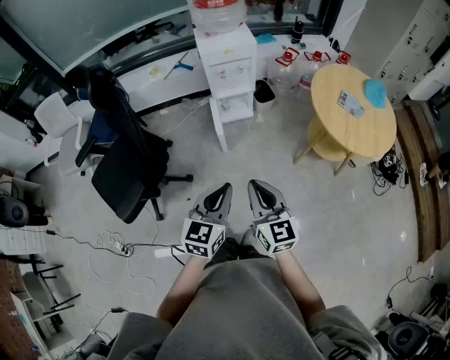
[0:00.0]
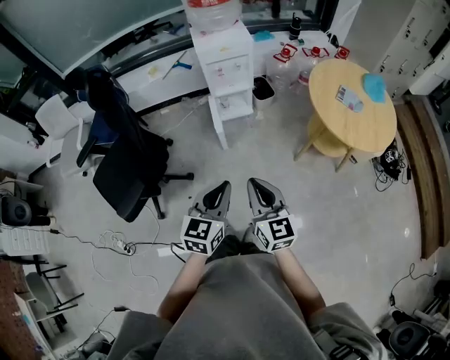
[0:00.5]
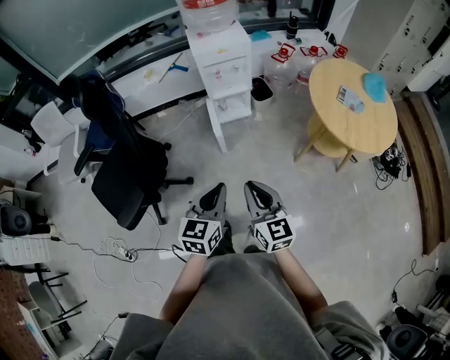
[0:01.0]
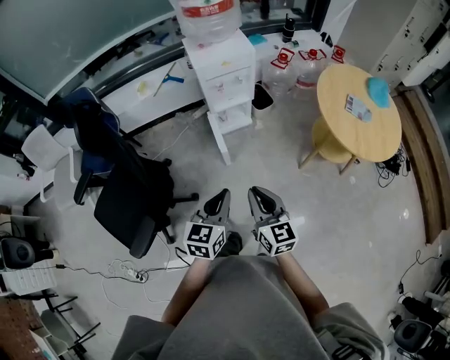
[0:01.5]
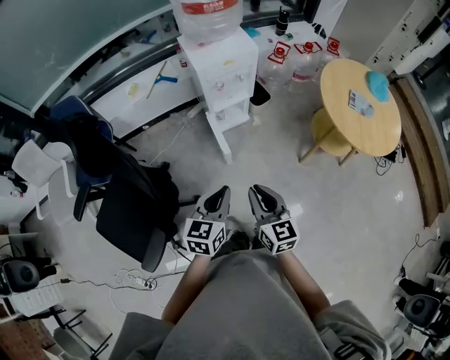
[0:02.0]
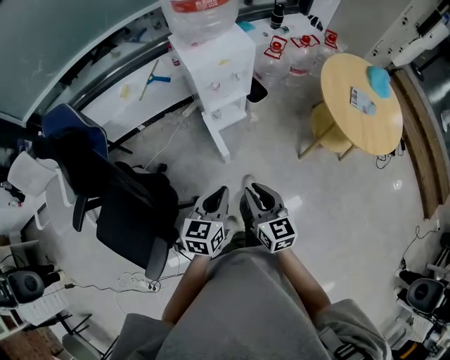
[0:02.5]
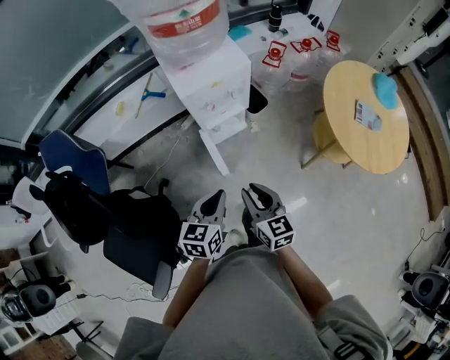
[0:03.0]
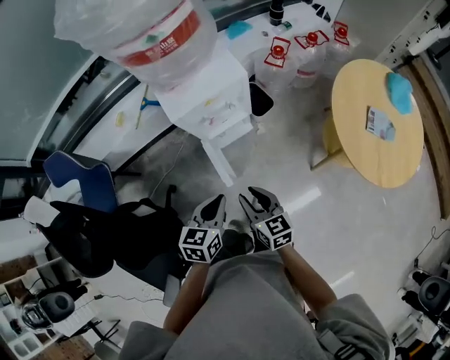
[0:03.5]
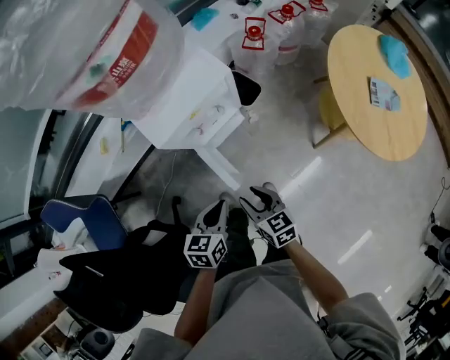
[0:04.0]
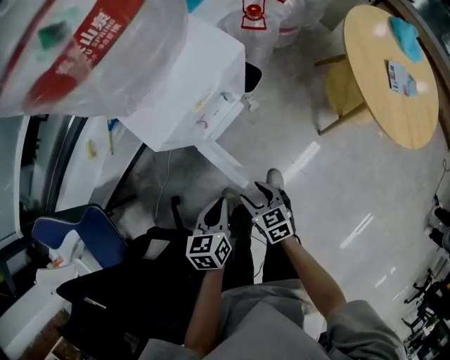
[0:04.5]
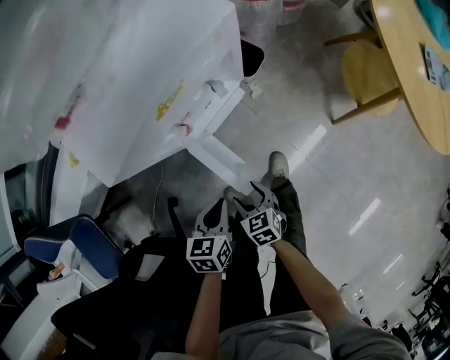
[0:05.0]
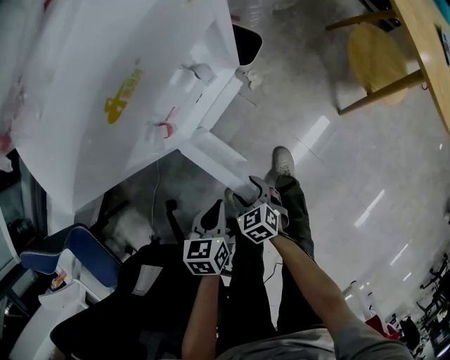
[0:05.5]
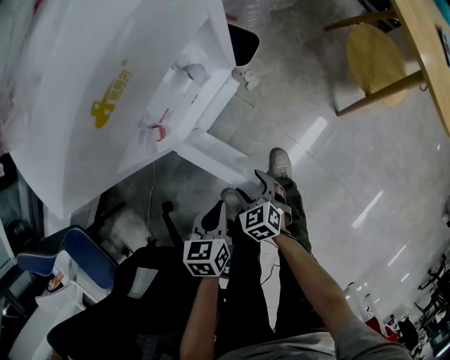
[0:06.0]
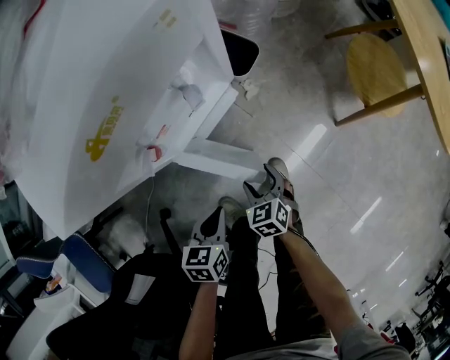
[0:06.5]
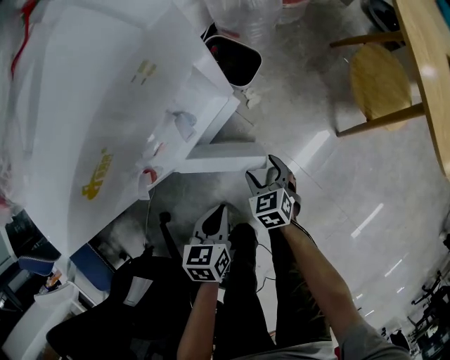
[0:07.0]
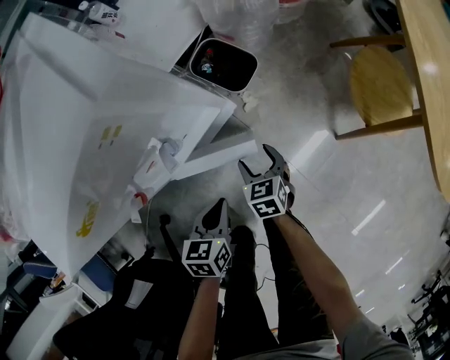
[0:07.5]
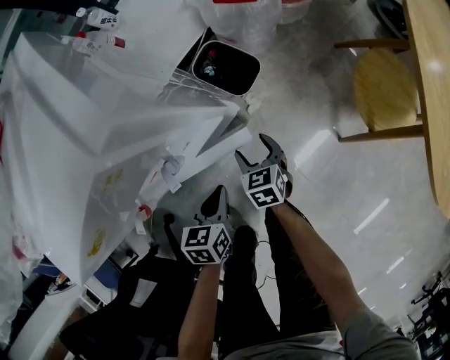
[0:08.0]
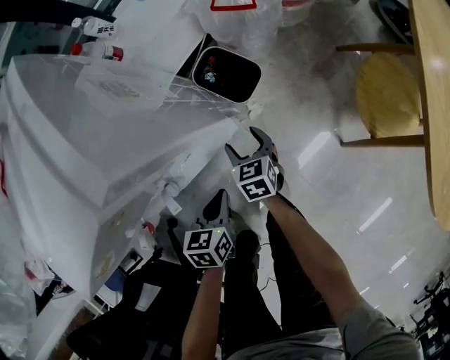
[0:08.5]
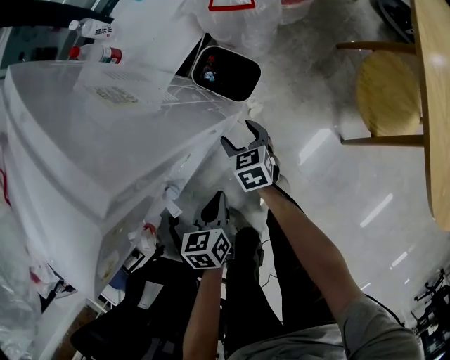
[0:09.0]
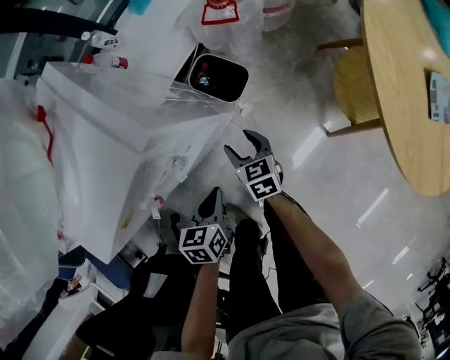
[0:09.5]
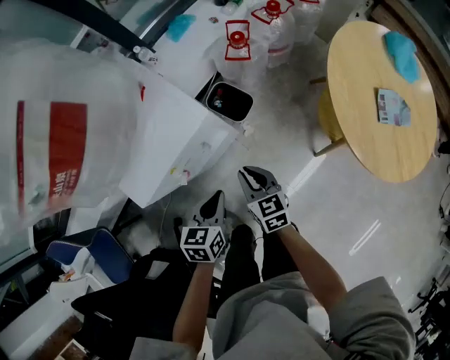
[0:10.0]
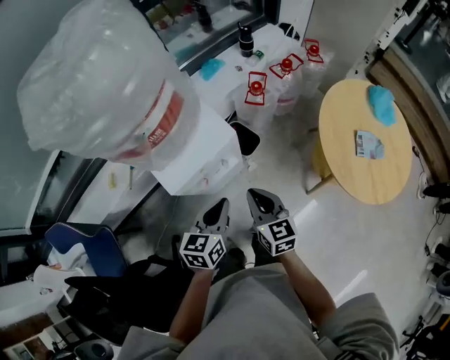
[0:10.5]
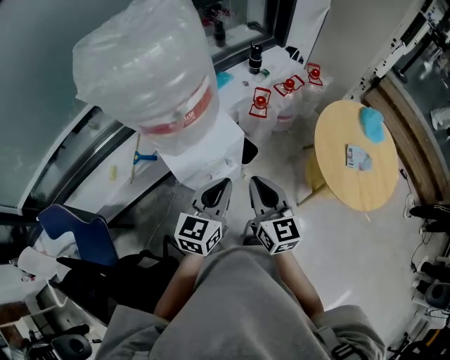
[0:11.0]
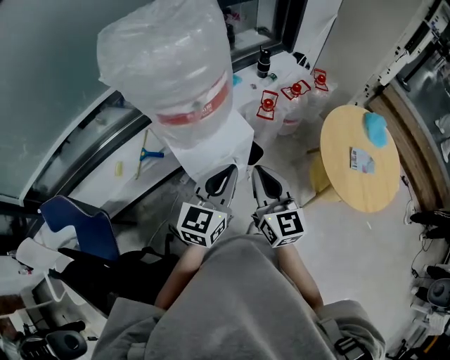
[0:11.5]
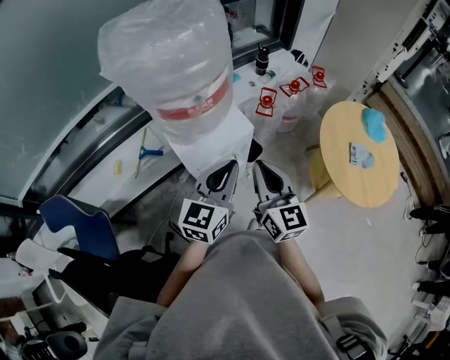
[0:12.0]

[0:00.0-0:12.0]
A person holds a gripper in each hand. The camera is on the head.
0:00.0 to 0:02.0: The two grippers go roughly 20 cm forward, to the left and downward.
0:02.0 to 0:04.0: The two grippers go approximately 30 cm forward and downward. The left gripper changes its angle by roughly 20 degrees. Meanwhile the right gripper changes its angle by some 20 degrees, and opens.
0:04.0 to 0:06.0: The two grippers go some 35 cm downward. The right gripper swivels about 30 degrees, and opens its fingers.
0:06.0 to 0:08.0: The two grippers go some 20 cm forward.
0:08.0 to 0:10.0: The two grippers go about 25 cm upward. The right gripper closes its fingers.
0:10.0 to 0:12.0: Both grippers travel together upward, approximately 35 cm. The left gripper points its fingers approximately 40 degrees further upward, while the right gripper tilts its fingers about 30 degrees upward.

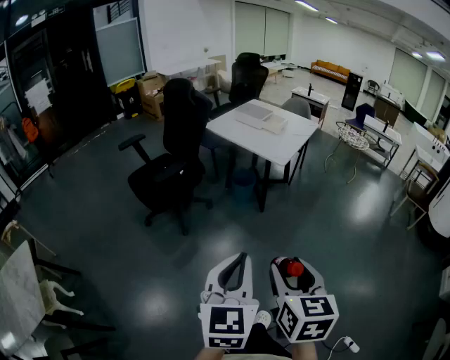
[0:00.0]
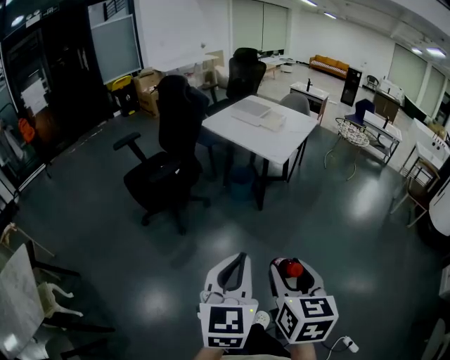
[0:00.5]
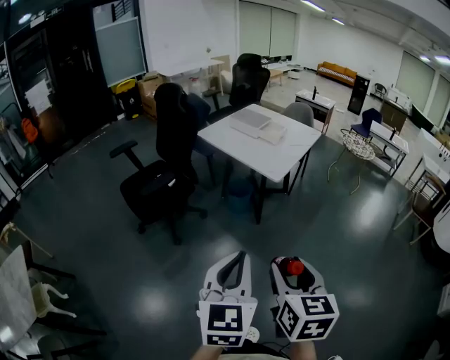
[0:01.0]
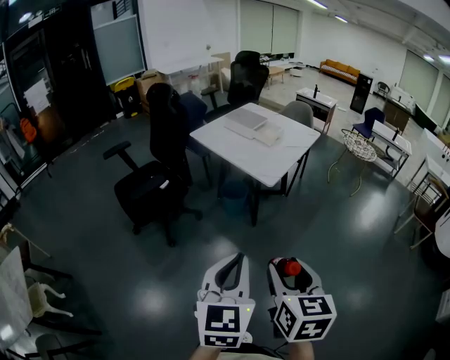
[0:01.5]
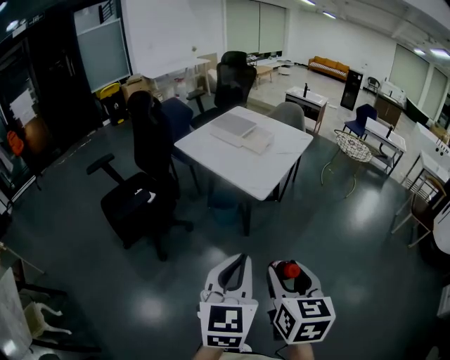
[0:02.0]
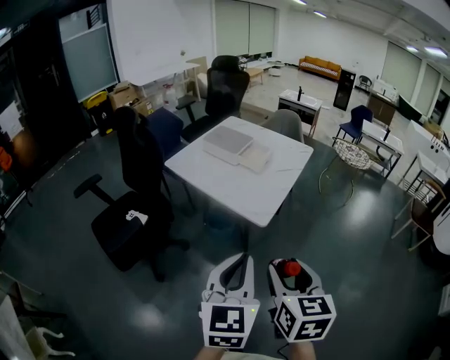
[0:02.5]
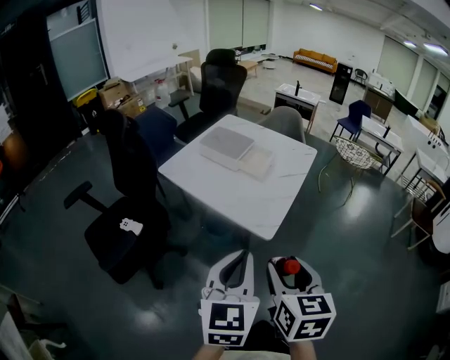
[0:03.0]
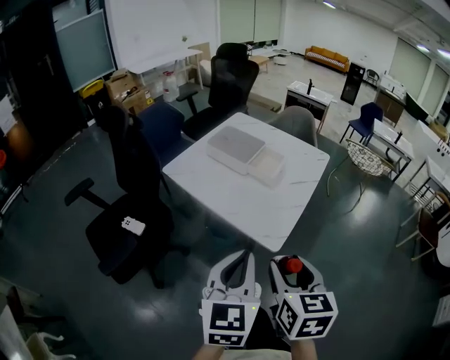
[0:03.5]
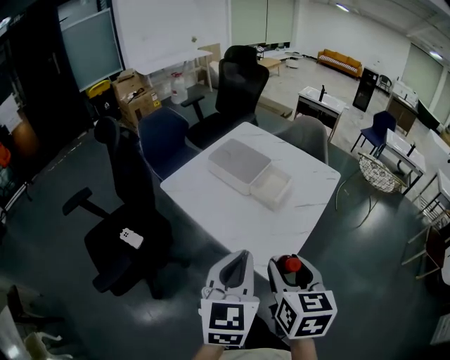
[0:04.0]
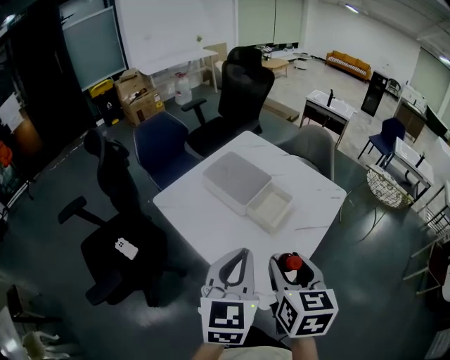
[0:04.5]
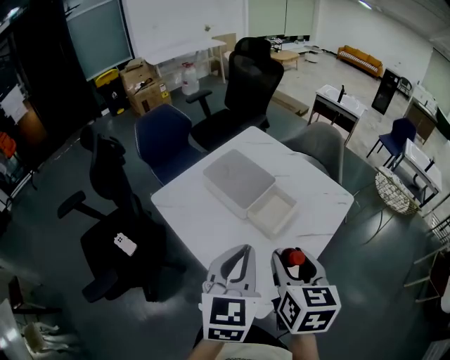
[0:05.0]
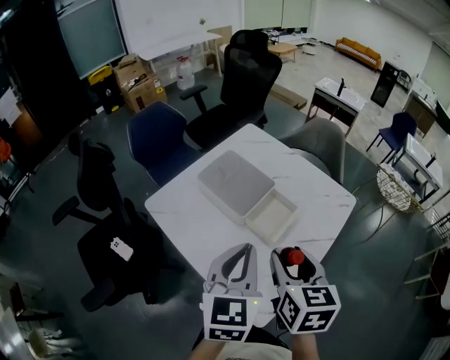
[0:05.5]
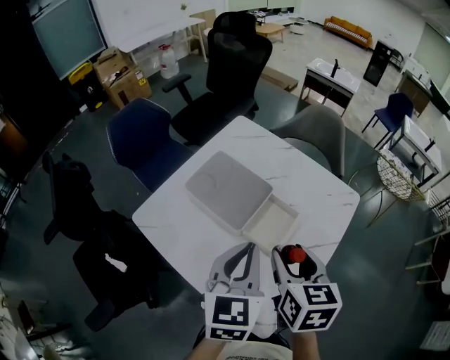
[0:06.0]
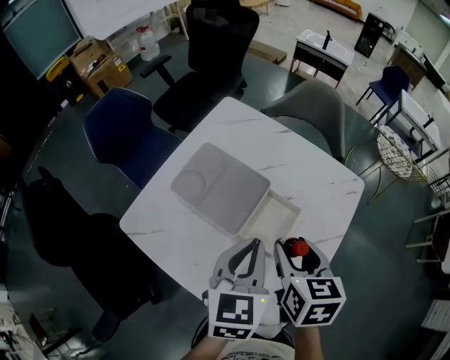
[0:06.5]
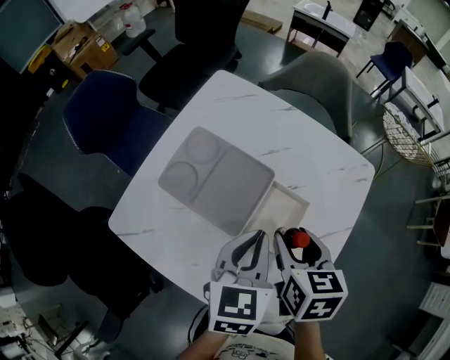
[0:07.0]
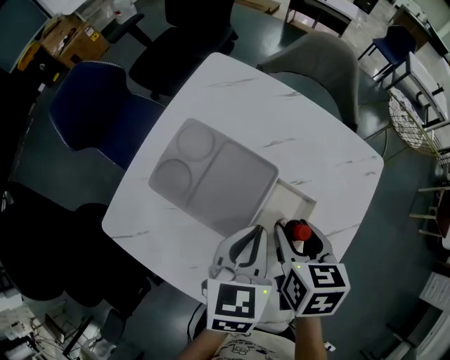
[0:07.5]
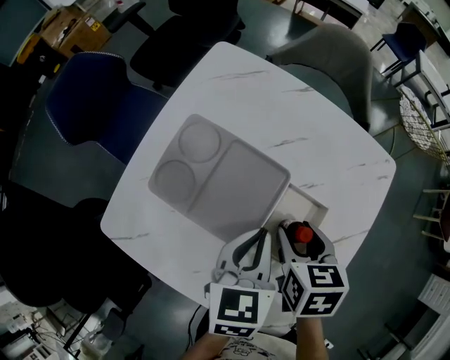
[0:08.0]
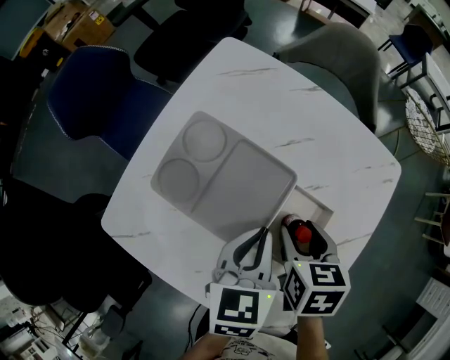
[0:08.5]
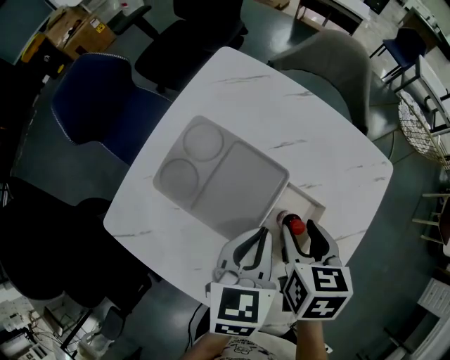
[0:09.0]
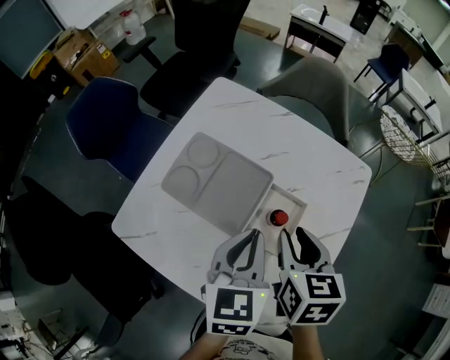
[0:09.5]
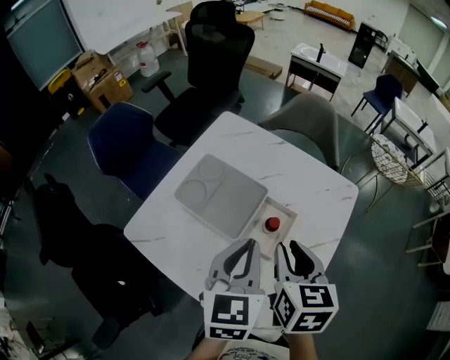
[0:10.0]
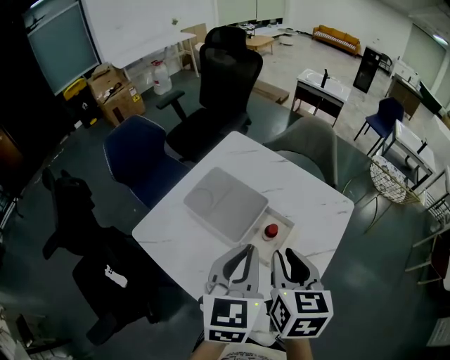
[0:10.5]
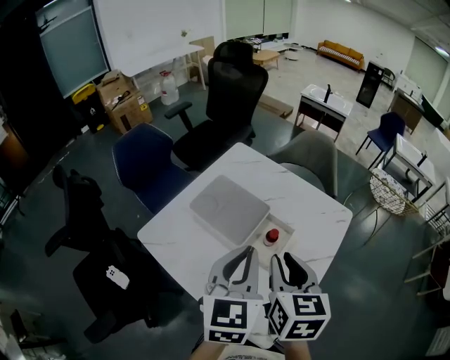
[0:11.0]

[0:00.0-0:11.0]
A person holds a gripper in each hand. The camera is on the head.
0:00.0 to 0:02.0: Both grippers travel together forward and to the right, roughly 30 cm.
0:02.0 to 0:03.5: Both grippers travel together forward, approximately 30 cm.
0:03.5 to 0:05.5: Both grippers move forward, roughly 35 cm.
0:05.5 to 0:07.5: The grippers both shift forward and downward by roughly 25 cm. The left gripper swivels about 30 degrees; the right gripper swivels approximately 20 degrees.
0:07.5 to 0:09.0: The grippers make only small movements.
0:09.0 to 0:11.0: Both grippers move upward and backward, about 20 cm. The left gripper swivels some 30 degrees, while the right gripper rotates some 30 degrees, and closes.

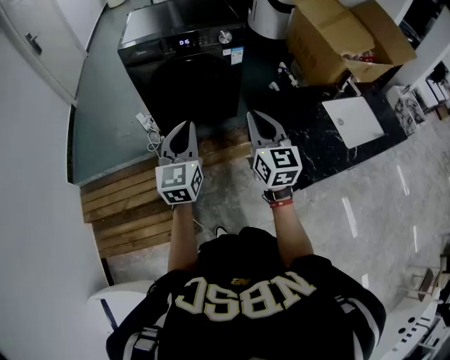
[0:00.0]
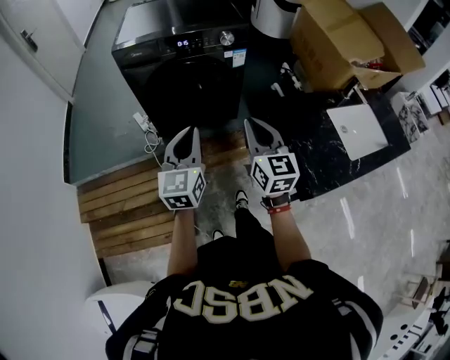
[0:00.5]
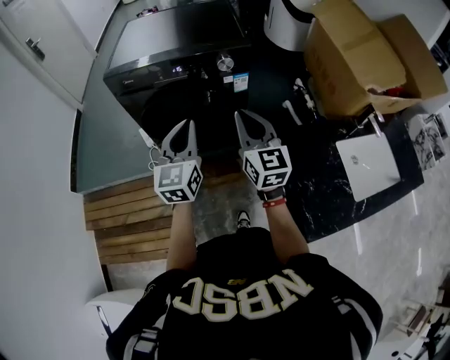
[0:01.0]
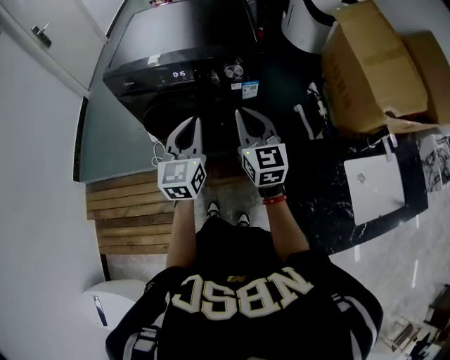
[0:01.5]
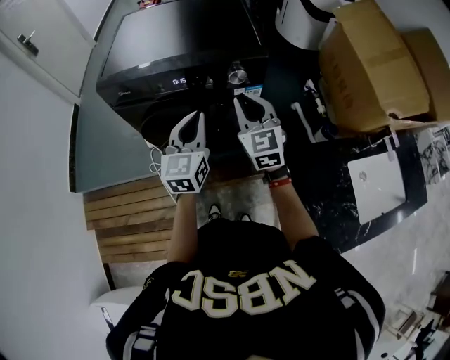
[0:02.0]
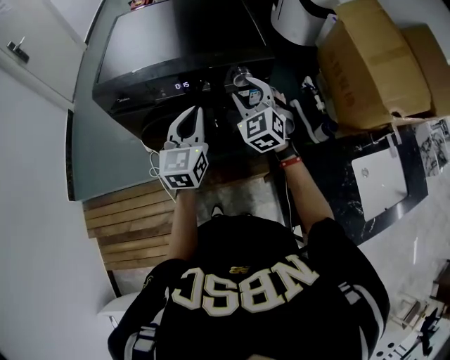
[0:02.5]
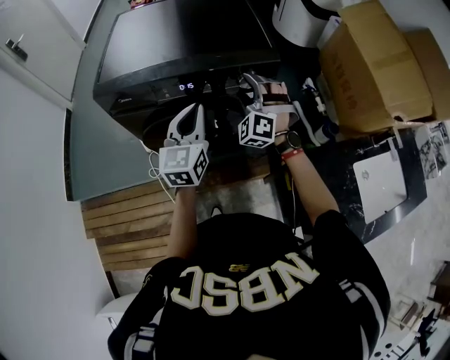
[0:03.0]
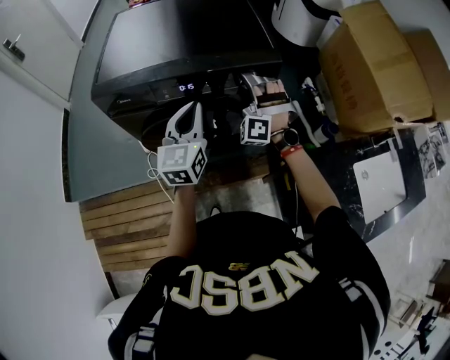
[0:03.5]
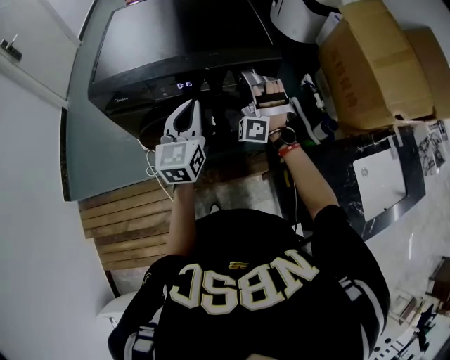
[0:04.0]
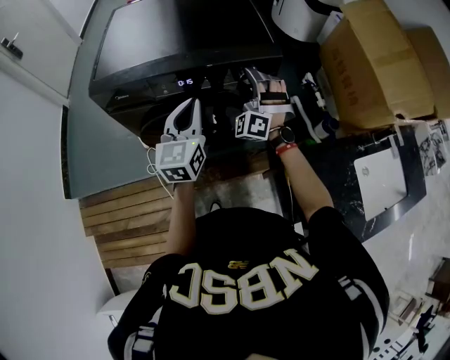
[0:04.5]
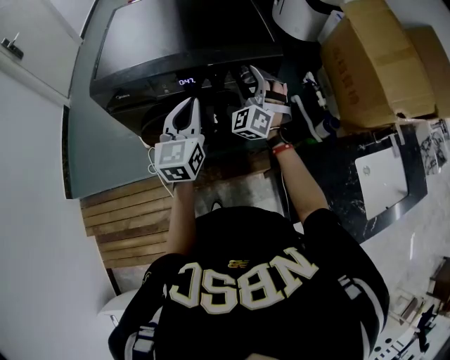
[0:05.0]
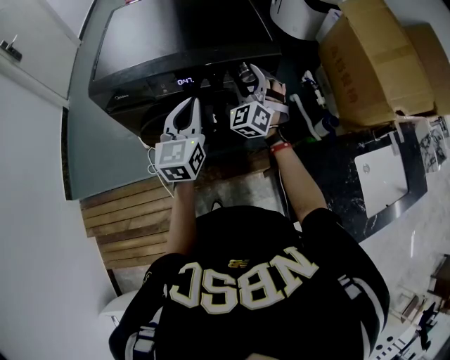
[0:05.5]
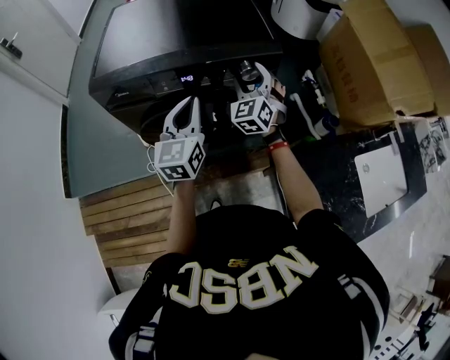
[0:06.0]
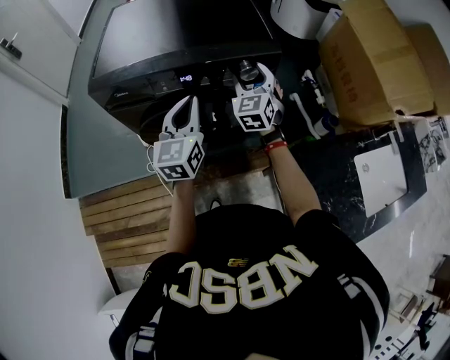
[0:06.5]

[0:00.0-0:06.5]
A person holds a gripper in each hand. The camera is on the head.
0:00.0 to 0:02.0: The two grippers go approximately 35 cm forward.
0:02.0 to 0:04.5: The right gripper travels forward and downward by approximately 15 cm, rotates around the line of its fingers by approximately 60 degrees, counterclockwise from behind, and opens; the left gripper shifts about 5 cm forward.
0:04.5 to 0:06.5: The right gripper twists approximately 50 degrees clockwise, seen from behind.
